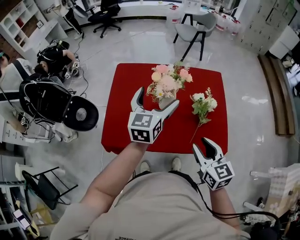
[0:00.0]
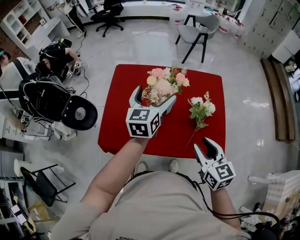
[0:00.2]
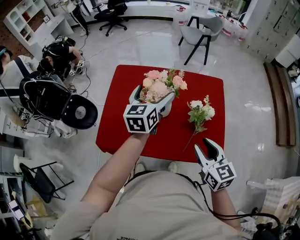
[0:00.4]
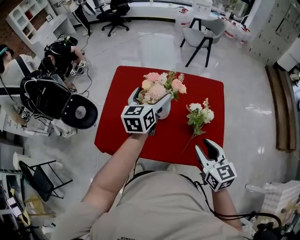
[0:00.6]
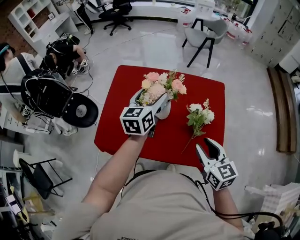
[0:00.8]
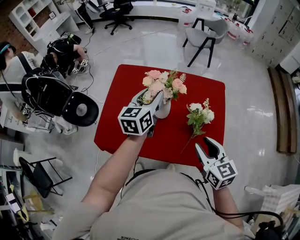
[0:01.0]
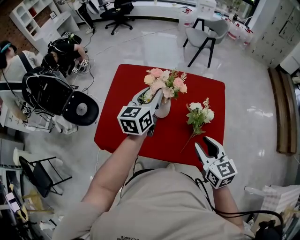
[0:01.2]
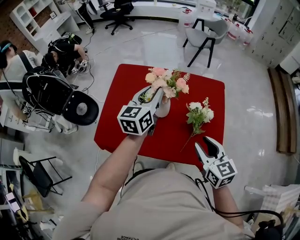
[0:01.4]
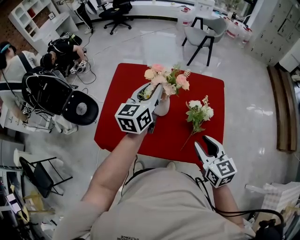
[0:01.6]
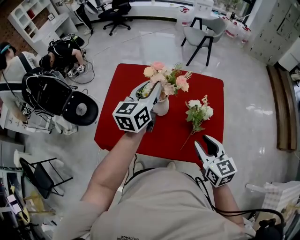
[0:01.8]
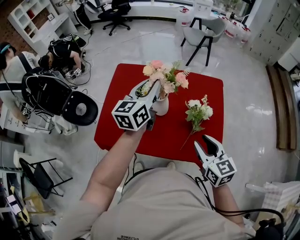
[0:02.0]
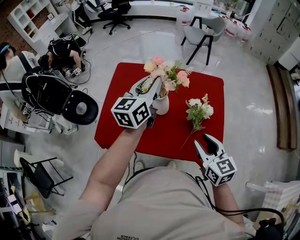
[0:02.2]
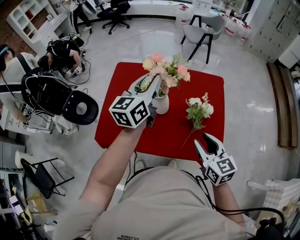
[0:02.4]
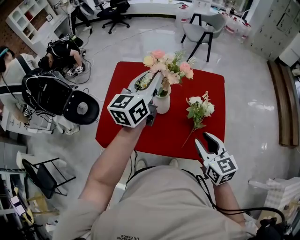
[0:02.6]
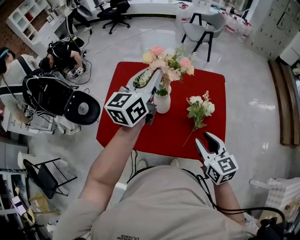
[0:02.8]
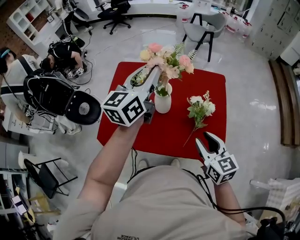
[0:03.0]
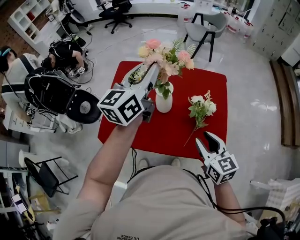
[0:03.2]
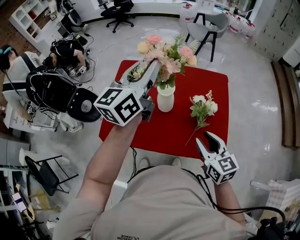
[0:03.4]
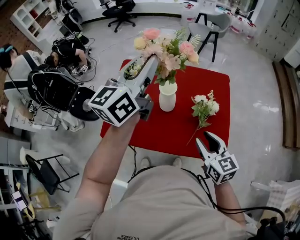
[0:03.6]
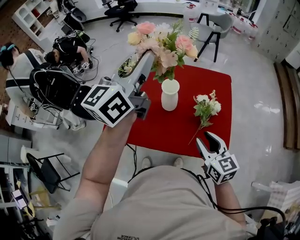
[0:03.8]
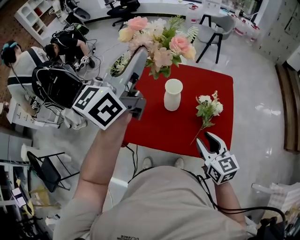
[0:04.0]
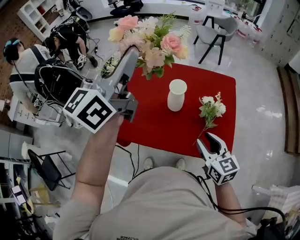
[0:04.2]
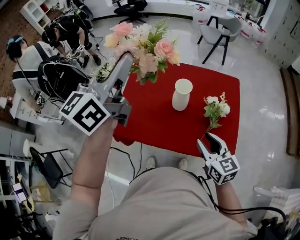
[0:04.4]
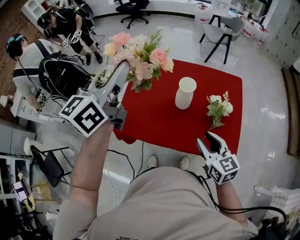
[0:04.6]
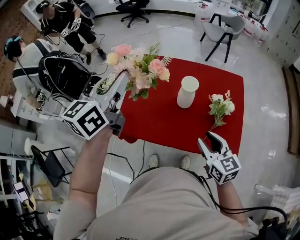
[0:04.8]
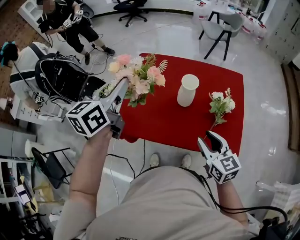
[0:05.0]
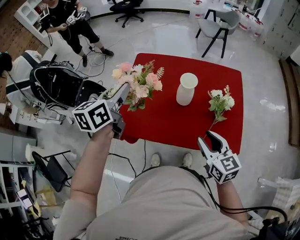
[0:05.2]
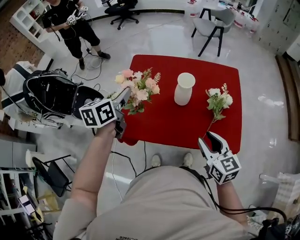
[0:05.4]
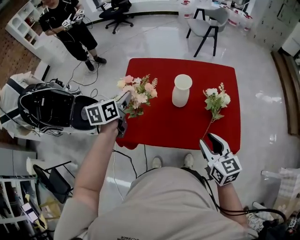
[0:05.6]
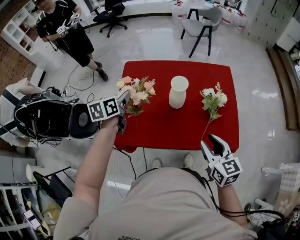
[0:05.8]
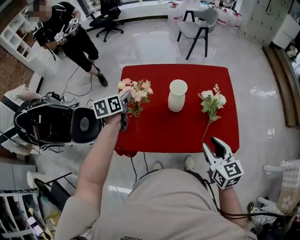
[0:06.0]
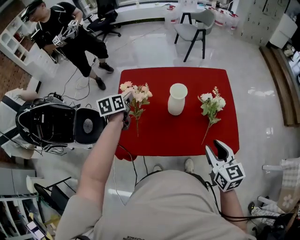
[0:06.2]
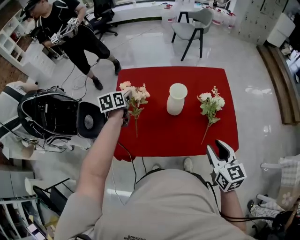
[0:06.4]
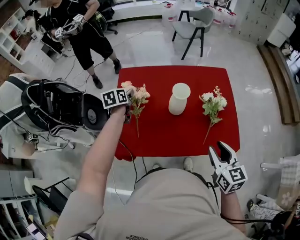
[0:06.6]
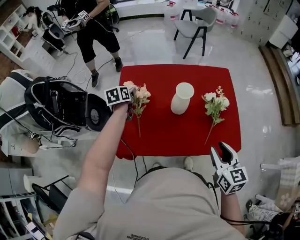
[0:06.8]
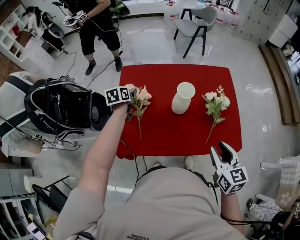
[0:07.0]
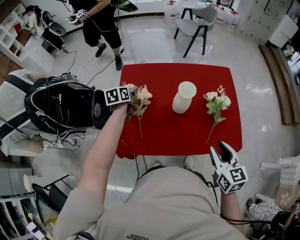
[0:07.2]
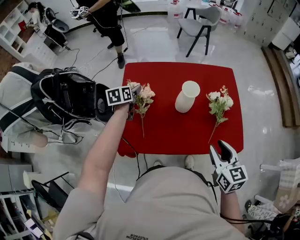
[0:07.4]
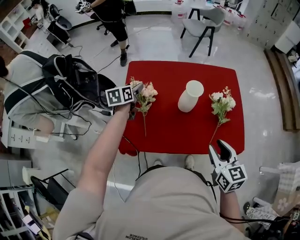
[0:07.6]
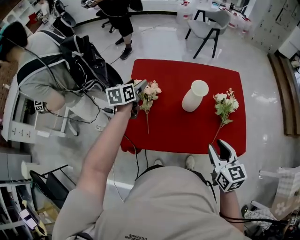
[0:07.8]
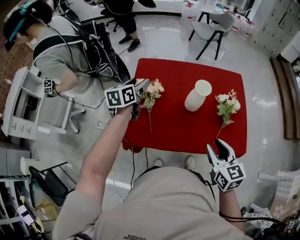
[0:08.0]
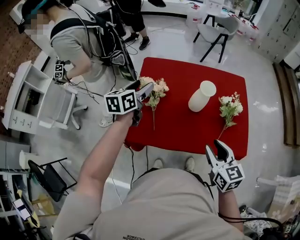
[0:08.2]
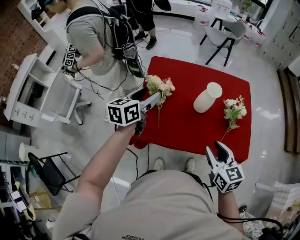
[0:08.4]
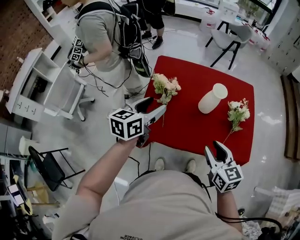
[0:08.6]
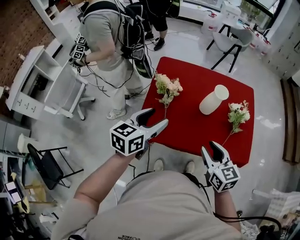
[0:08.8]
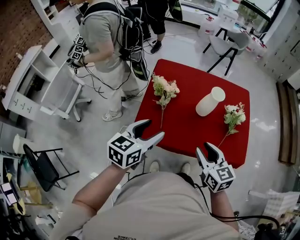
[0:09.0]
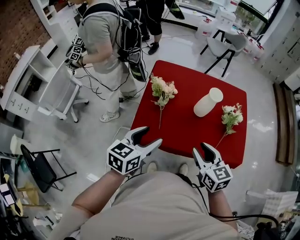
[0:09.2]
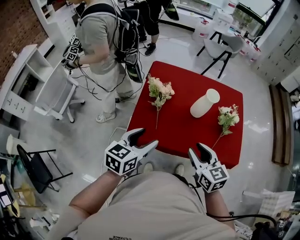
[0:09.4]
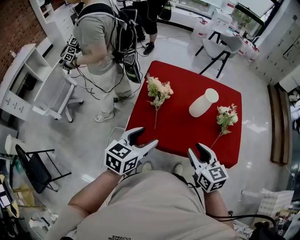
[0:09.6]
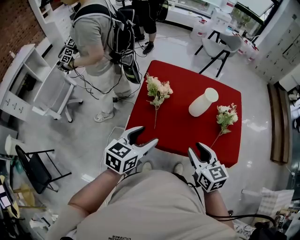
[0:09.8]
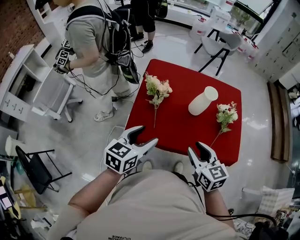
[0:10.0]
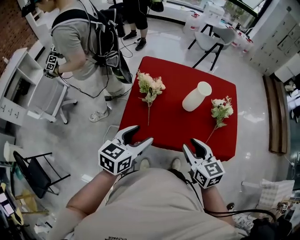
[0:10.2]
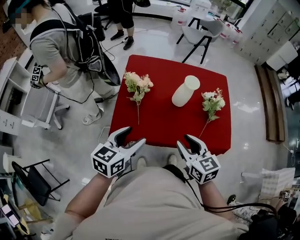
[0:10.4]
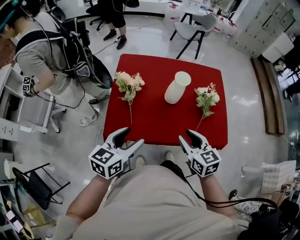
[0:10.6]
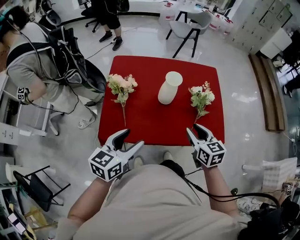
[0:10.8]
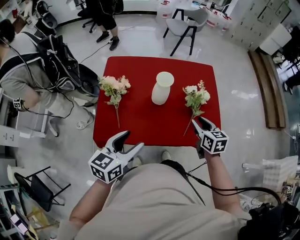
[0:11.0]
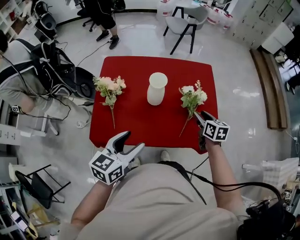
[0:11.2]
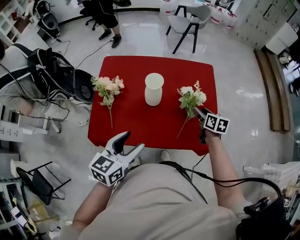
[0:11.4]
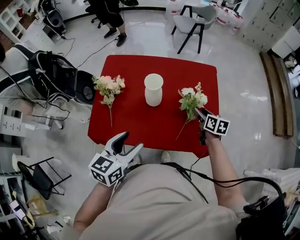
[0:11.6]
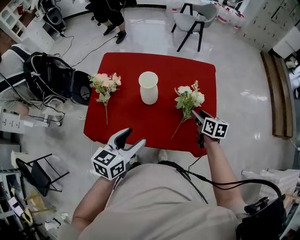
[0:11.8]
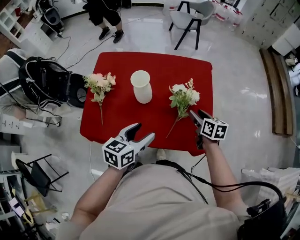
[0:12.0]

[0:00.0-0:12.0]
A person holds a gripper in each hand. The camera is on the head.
0:00.0 to 0:01.6: The left gripper moves some 5 cm, and closes, while the right gripper goes roughly 5 cm to the right.
0:01.6 to 0:03.0: The left gripper travels upward by roughly 10 cm.
0:03.0 to 0:04.4: The right gripper is displaced to the left by about 5 cm. The left gripper shifts about 20 cm to the left, upward and backward.
0:04.4 to 0:06.0: The left gripper shifts approximately 30 cm downward, and points its fingers about 40 degrees further downward.
0:06.0 to 0:07.6: The left gripper travels forward and downward by approximately 10 cm.
0:07.6 to 0:09.0: The right gripper heads to the left, covering approximately 15 cm; the left gripper travels backward by approximately 30 cm, and turns by approximately 20 degrees.
0:09.0 to 0:10.4: There are only small adjustments of the grippers.
0:10.4 to 0:12.0: The right gripper shifts approximately 35 cm to the right and forward, and turns by some 30 degrees. Meanwhile the left gripper goes approximately 25 cm to the right.

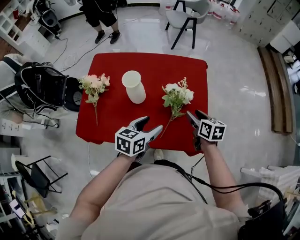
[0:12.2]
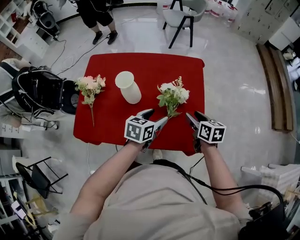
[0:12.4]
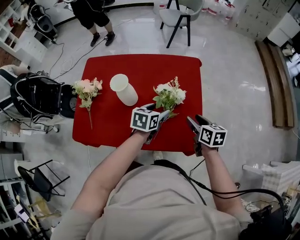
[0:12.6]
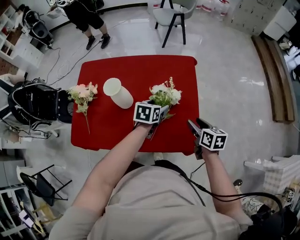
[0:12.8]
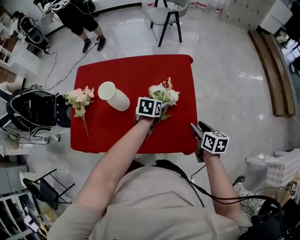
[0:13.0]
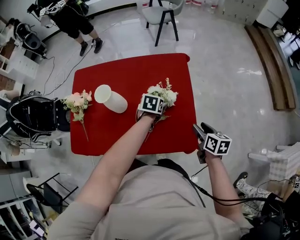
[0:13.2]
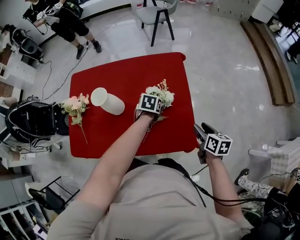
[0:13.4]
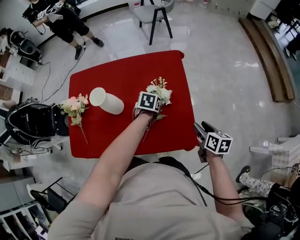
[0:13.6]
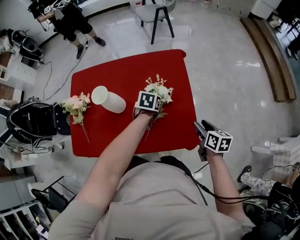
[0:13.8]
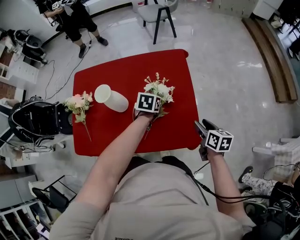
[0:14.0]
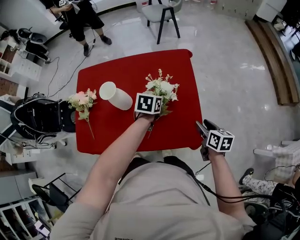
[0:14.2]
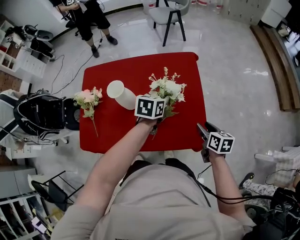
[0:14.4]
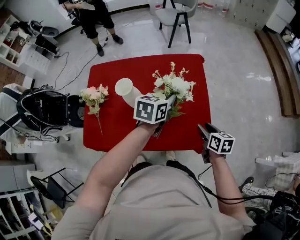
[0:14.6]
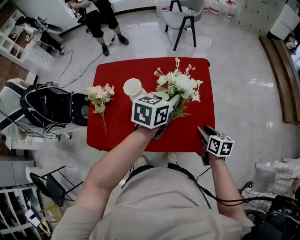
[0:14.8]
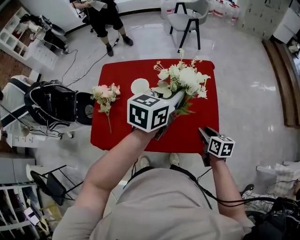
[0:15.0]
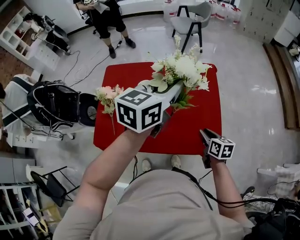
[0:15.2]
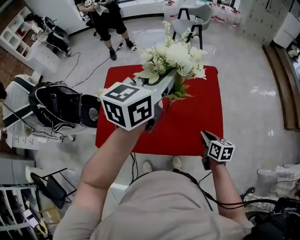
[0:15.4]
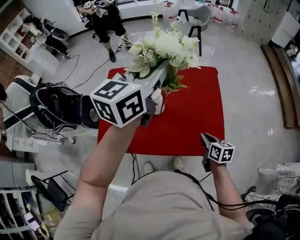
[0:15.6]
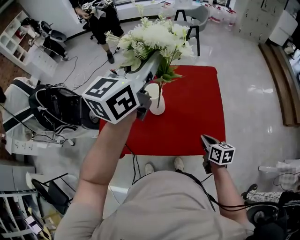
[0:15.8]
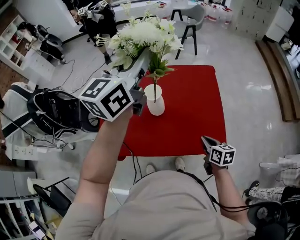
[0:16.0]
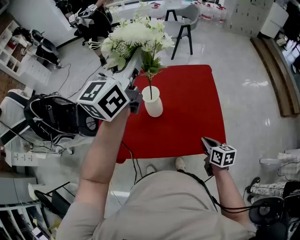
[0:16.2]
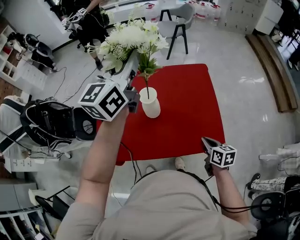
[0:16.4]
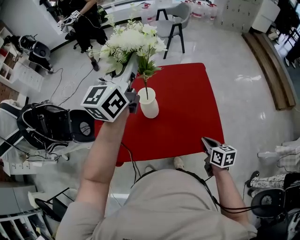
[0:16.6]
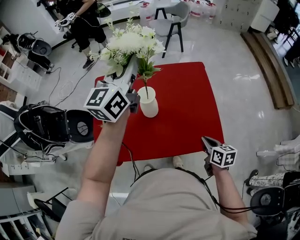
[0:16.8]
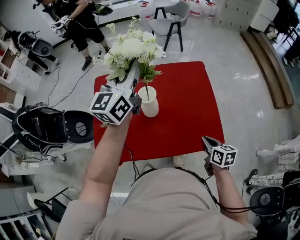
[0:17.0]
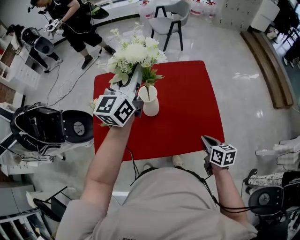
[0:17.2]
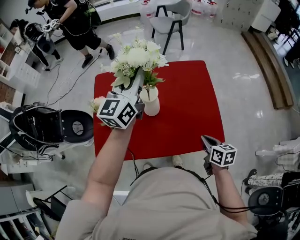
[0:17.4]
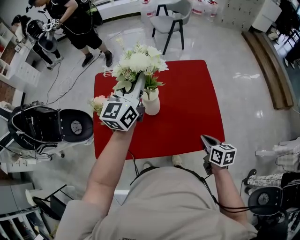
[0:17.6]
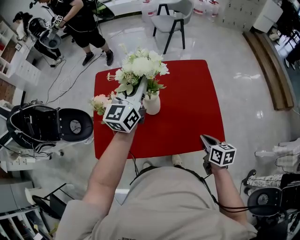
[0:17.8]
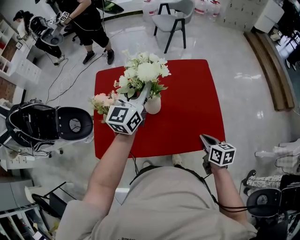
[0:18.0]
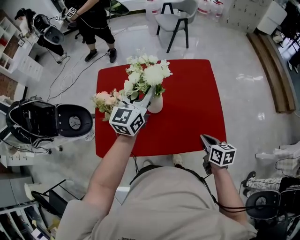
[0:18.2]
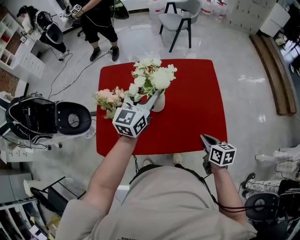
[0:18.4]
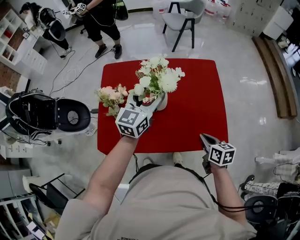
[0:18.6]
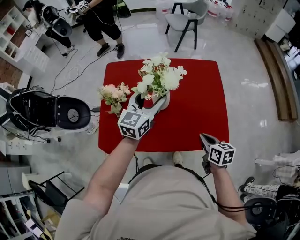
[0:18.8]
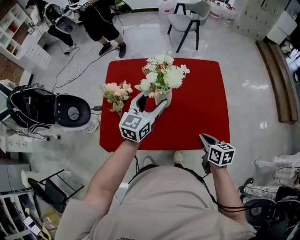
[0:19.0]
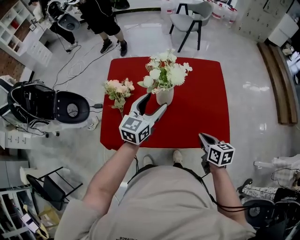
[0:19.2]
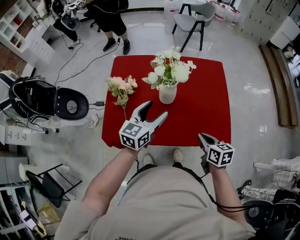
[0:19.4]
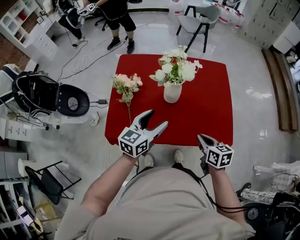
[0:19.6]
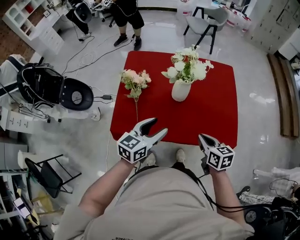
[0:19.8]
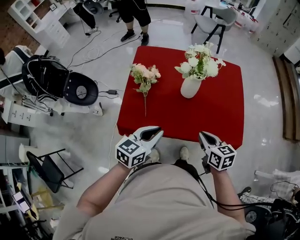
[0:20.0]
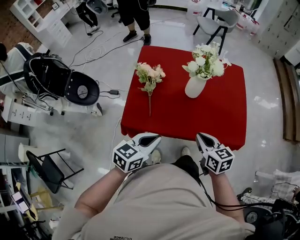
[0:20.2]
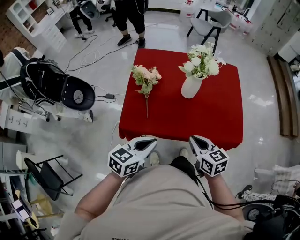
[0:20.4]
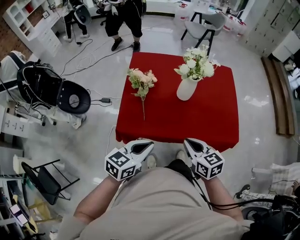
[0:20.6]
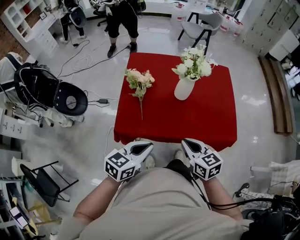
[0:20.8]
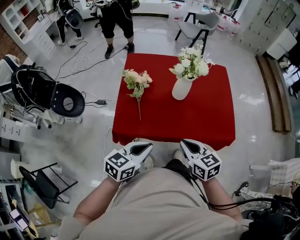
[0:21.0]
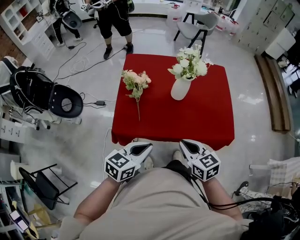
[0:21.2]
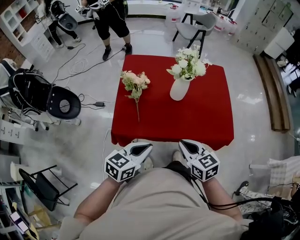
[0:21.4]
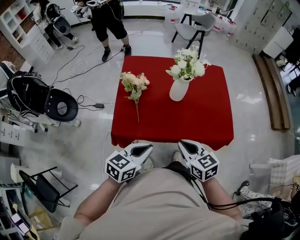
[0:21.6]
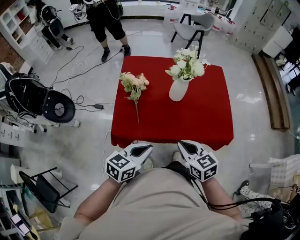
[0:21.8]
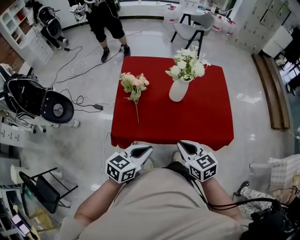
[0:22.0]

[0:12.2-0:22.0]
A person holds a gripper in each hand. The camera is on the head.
0:12.2 to 0:13.6: The left gripper moves forward, downward and to the right, some 25 cm, and tilts its fingers some 30 degrees downward. Meanwhile the right gripper travels to the right by roughly 15 cm.
0:13.6 to 0:15.0: The right gripper is displaced to the left by roughly 15 cm, while the left gripper goes approximately 30 cm upward, and points its fingers some 40 degrees further upward.
0:15.0 to 0:16.4: The left gripper heads to the left and upward, covering some 25 cm, and angles its fingers upward, by roughly 30 degrees, while the right gripper moves backward, roughly 5 cm, and closes its fingers.
0:16.4 to 0:17.8: The left gripper shifts some 15 cm downward.
0:17.8 to 0:19.2: The left gripper is displaced downward and backward by roughly 15 cm, and opens its fingers.
0:19.2 to 0:20.6: The right gripper shifts some 20 cm to the left and backward, and swivels about 20 degrees, while the left gripper travels backward and to the left by roughly 25 cm, rotates roughly 20 degrees, and closes its fingers.
0:20.6 to 0:22.0: The grippers stay close to where they were, moving slightly.

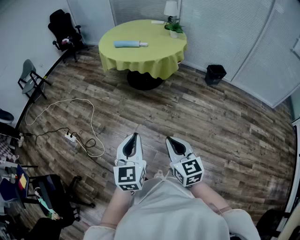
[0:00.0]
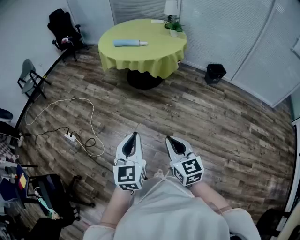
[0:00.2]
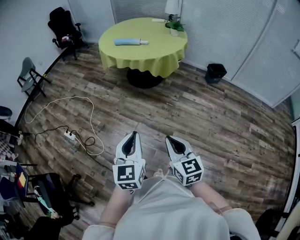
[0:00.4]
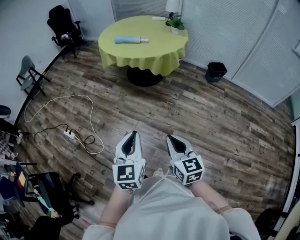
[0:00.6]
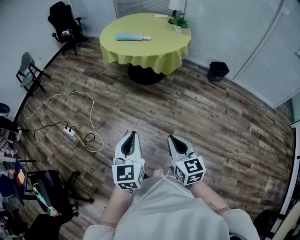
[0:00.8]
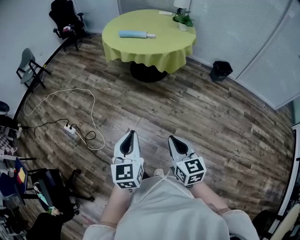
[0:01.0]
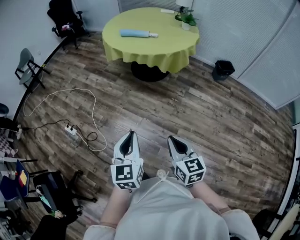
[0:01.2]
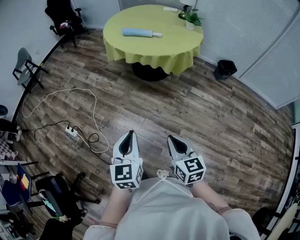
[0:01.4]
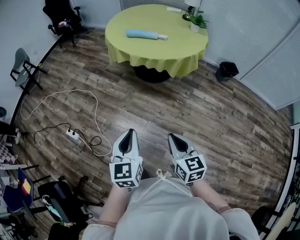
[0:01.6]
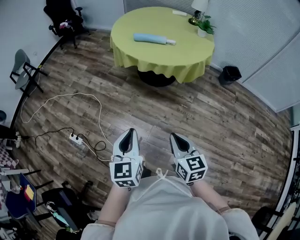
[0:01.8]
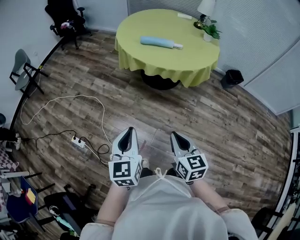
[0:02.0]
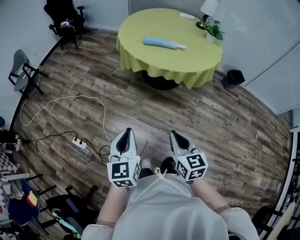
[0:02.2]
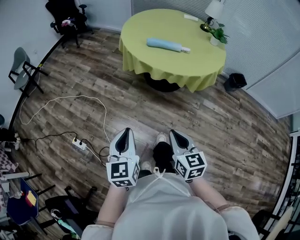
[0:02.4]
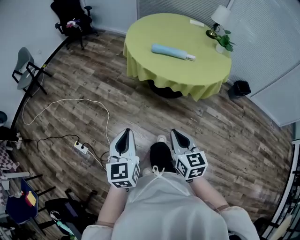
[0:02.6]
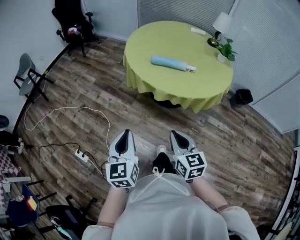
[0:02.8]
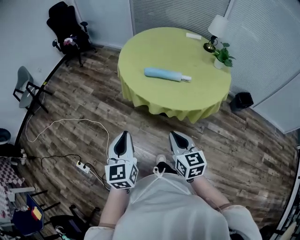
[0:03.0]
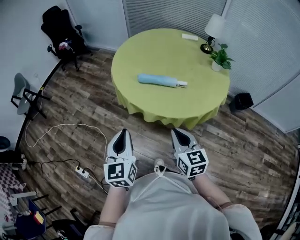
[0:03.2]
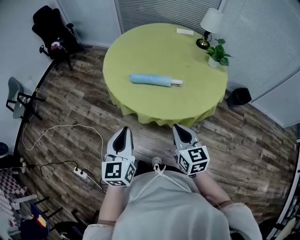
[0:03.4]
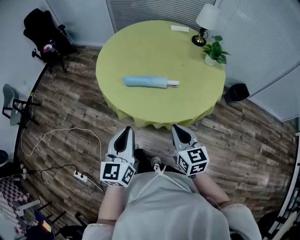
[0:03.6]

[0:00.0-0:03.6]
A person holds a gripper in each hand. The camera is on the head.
0:00.0 to 0:01.8: Both grippers travel together forward and to the left, approximately 35 cm.
0:01.8 to 0:03.6: The two grippers travel together, forward, some 50 cm.
